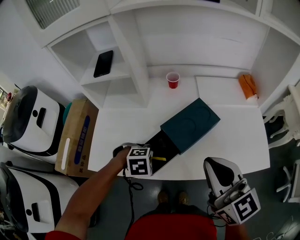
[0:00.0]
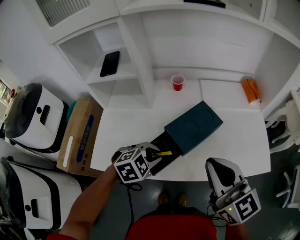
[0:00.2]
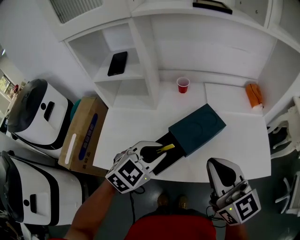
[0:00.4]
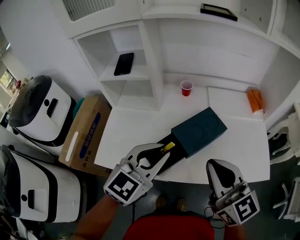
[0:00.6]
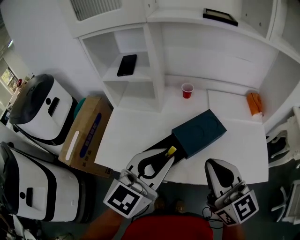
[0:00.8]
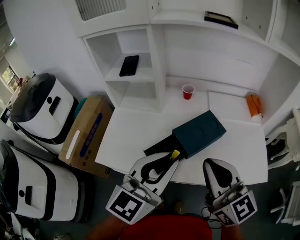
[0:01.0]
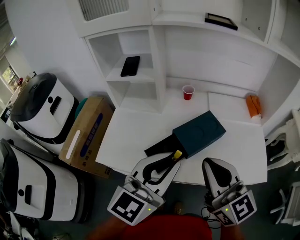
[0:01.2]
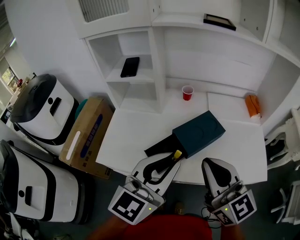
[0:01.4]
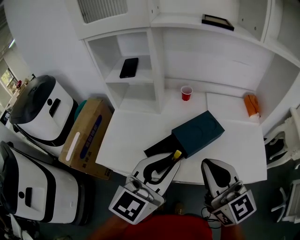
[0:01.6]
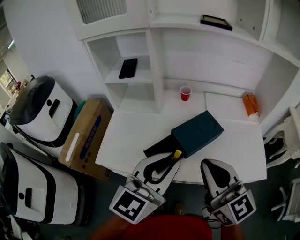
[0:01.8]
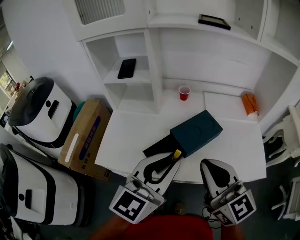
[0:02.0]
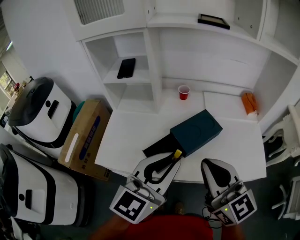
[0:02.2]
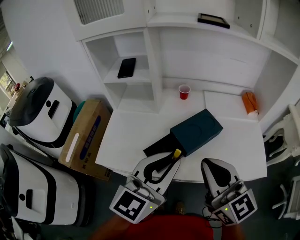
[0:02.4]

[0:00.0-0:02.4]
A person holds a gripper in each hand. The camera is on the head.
0:00.0 to 0:01.2: The left gripper travels upward by roughly 30 cm, and tips its fingers upward by some 70 degrees, while the right gripper changes place by some 5 cm.
0:01.2 to 0:02.4: Both grippers stay about where they are.

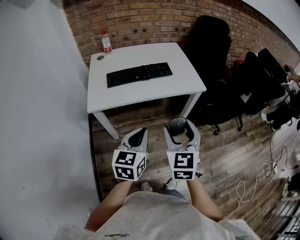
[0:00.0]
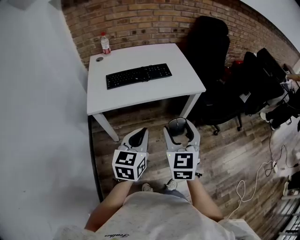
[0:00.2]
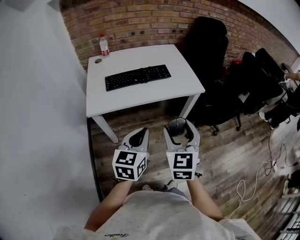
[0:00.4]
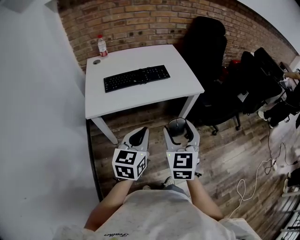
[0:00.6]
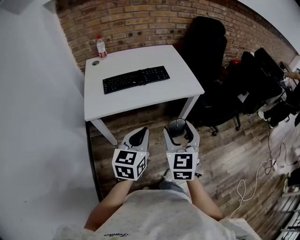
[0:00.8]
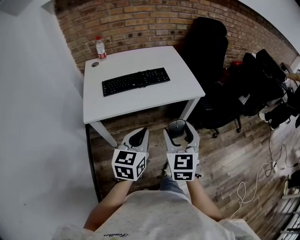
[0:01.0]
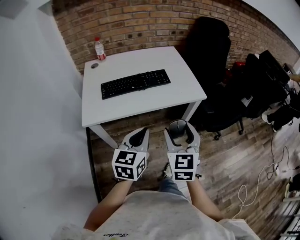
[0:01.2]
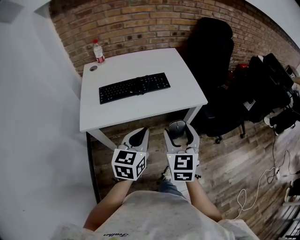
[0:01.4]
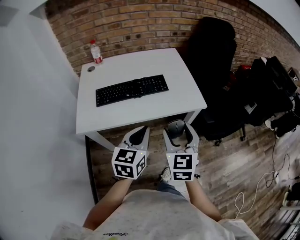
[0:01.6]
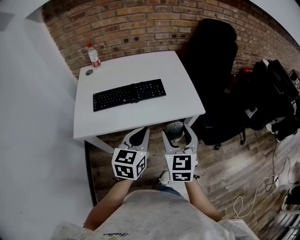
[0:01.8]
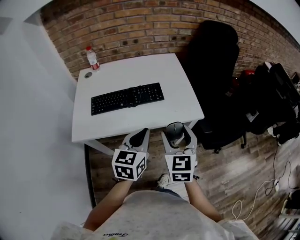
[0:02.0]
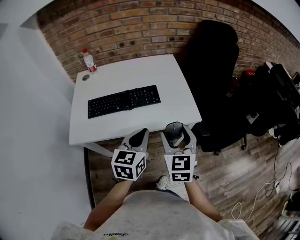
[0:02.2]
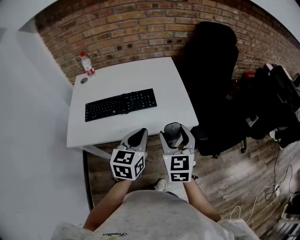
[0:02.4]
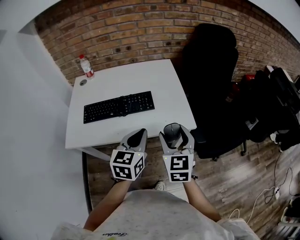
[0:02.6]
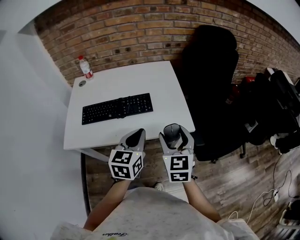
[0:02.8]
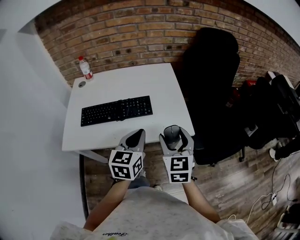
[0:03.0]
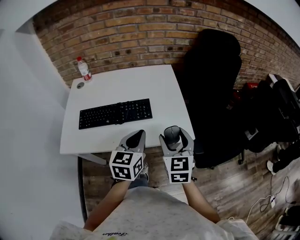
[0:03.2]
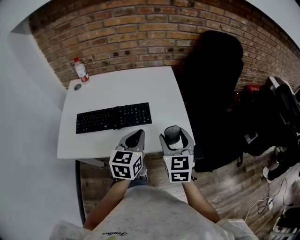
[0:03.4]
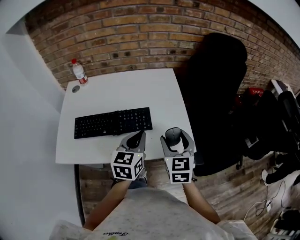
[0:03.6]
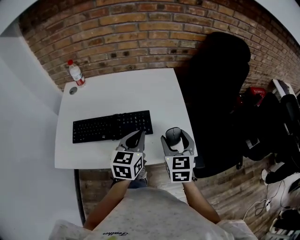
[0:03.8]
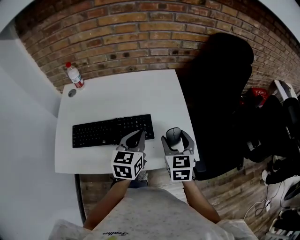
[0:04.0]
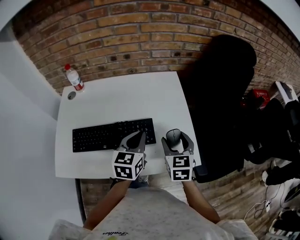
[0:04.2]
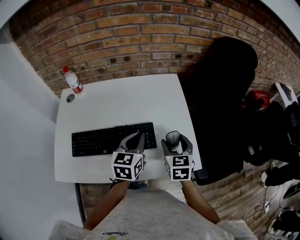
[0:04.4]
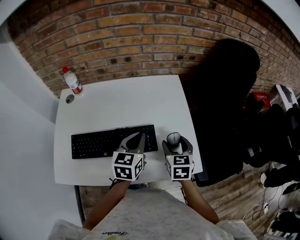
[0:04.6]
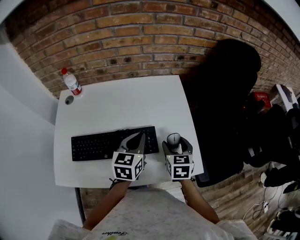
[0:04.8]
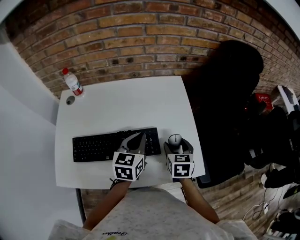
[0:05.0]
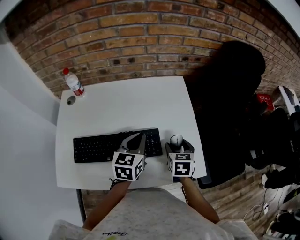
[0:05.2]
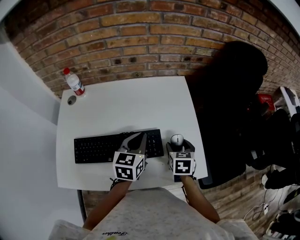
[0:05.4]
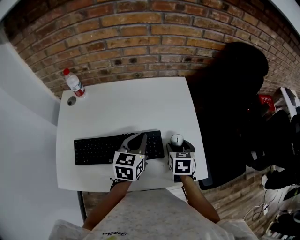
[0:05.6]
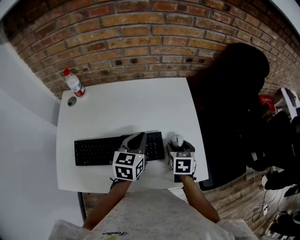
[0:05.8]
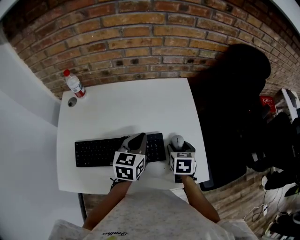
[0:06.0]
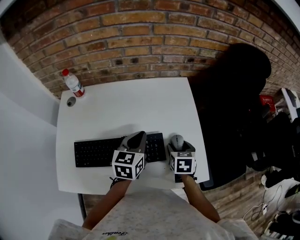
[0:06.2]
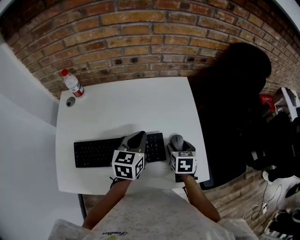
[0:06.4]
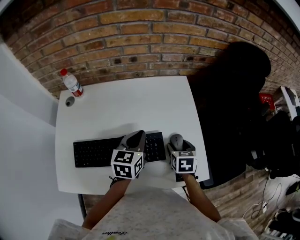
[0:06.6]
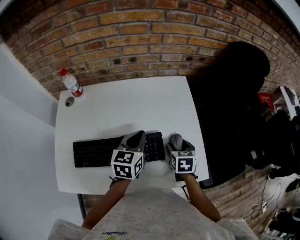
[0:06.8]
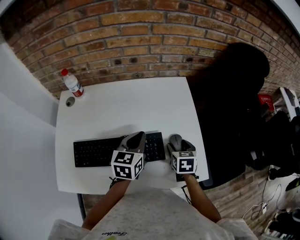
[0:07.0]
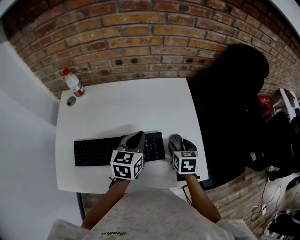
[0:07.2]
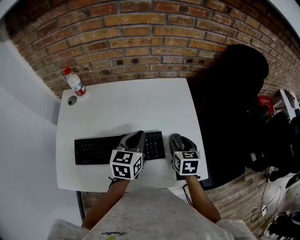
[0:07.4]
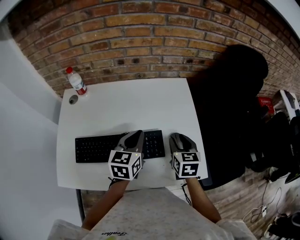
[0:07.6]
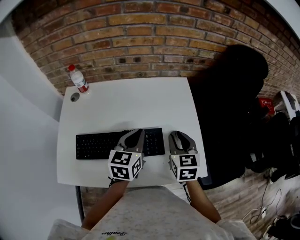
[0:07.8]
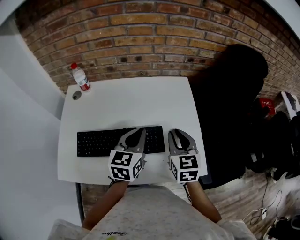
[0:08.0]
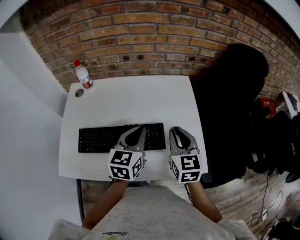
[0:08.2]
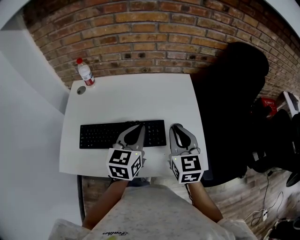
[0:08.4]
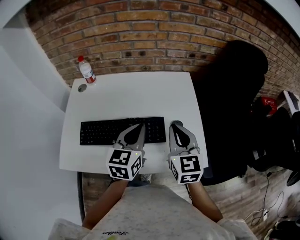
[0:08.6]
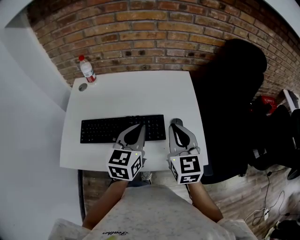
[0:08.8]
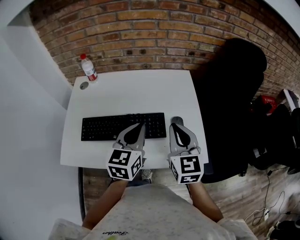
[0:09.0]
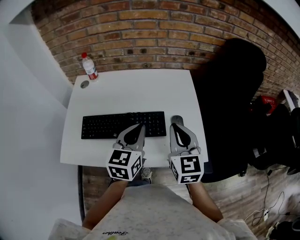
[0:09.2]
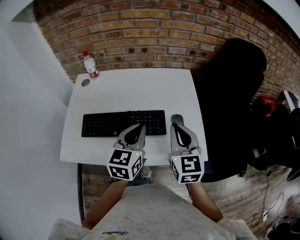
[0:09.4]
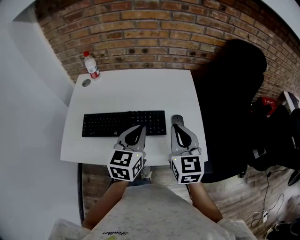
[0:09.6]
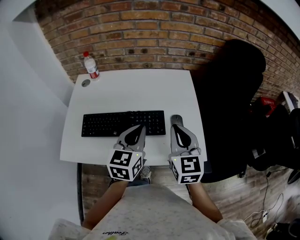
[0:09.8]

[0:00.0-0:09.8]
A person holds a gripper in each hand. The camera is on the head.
0:00.0 to 0:01.4: Both grippers travel together forward, approximately 15 cm.
0:01.4 to 0:02.8: The two grippers go approximately 20 cm forward and to the right.
0:02.8 to 0:04.2: The two grippers go roughly 20 cm forward.
0:04.2 to 0:05.6: The left gripper heads forward, covering roughly 5 cm; the right gripper shifts approximately 10 cm downward and forward, and rotates about 20 degrees.
0:05.6 to 0:07.0: The grippers make only small movements.
0:07.0 to 0:08.4: The left gripper goes some 10 cm backward and upward; the right gripper is displaced upward by roughly 20 cm, tips its fingers upward by roughly 30 degrees, and closes.
0:08.4 to 0:09.8: The two grippers go about 5 cm backward.

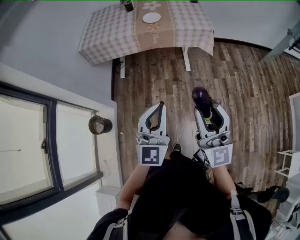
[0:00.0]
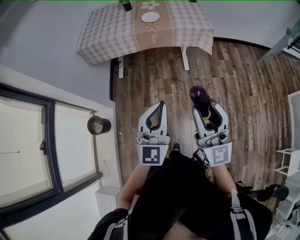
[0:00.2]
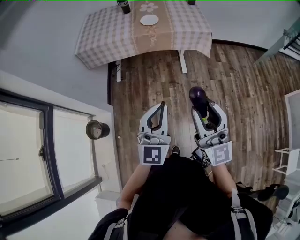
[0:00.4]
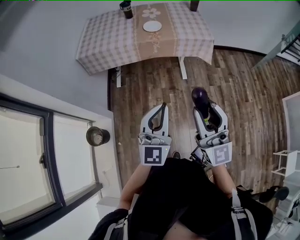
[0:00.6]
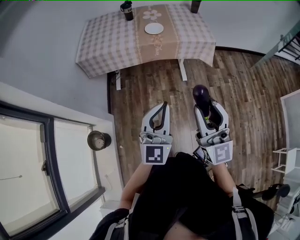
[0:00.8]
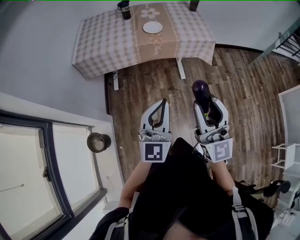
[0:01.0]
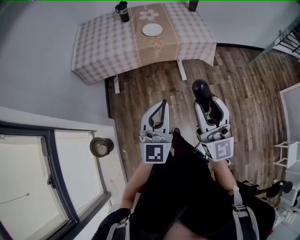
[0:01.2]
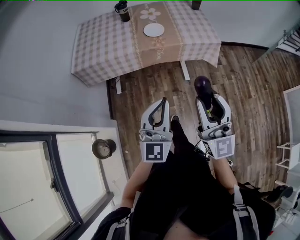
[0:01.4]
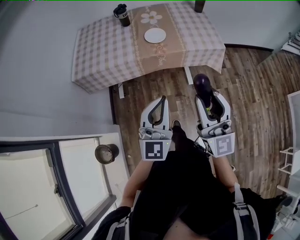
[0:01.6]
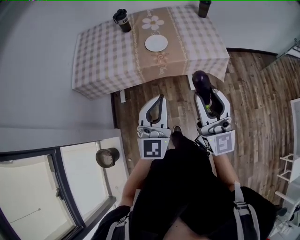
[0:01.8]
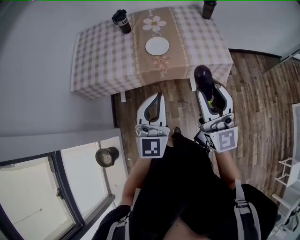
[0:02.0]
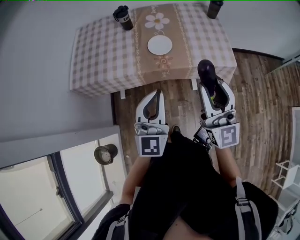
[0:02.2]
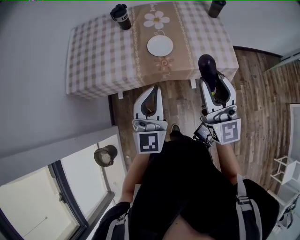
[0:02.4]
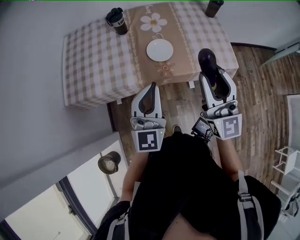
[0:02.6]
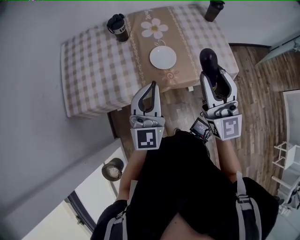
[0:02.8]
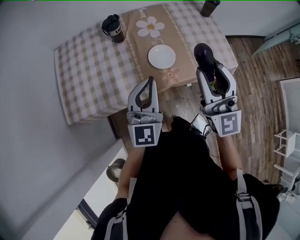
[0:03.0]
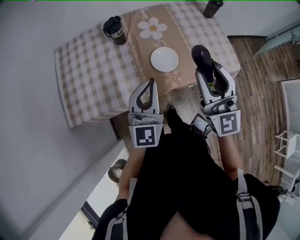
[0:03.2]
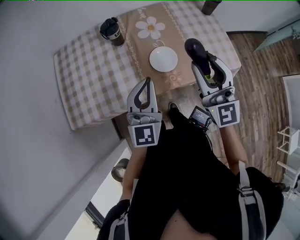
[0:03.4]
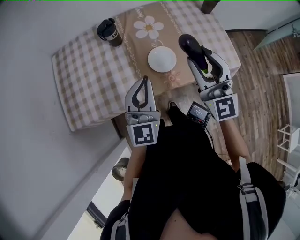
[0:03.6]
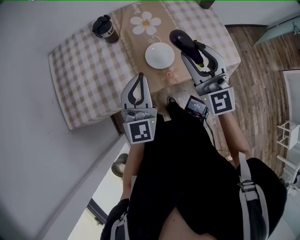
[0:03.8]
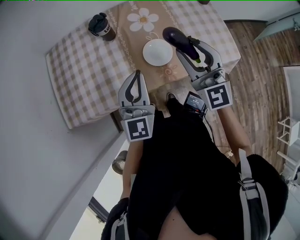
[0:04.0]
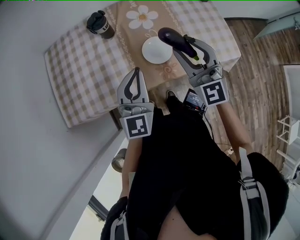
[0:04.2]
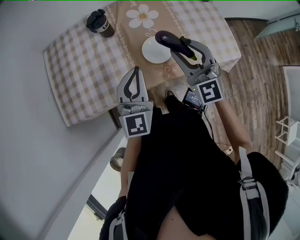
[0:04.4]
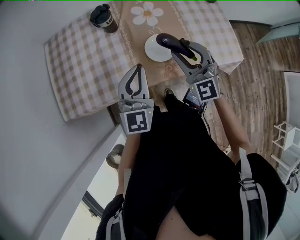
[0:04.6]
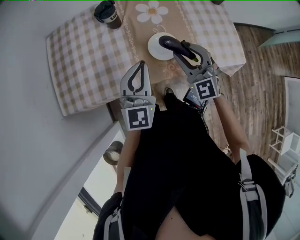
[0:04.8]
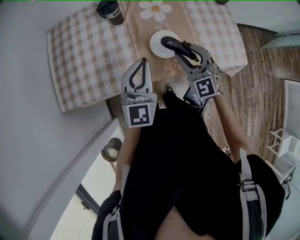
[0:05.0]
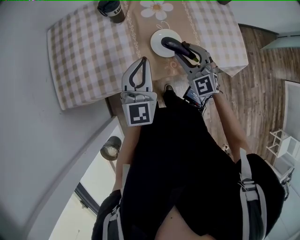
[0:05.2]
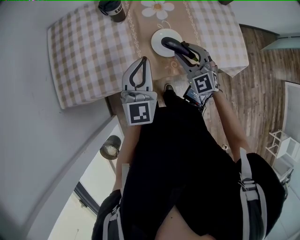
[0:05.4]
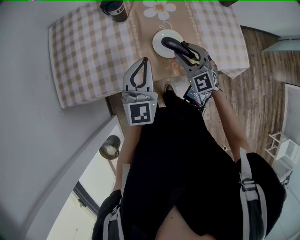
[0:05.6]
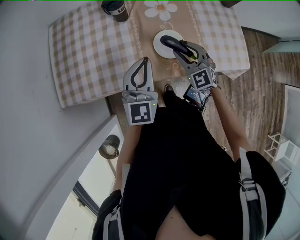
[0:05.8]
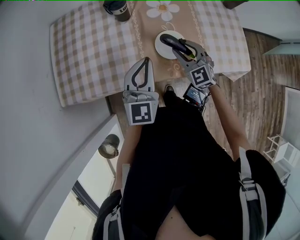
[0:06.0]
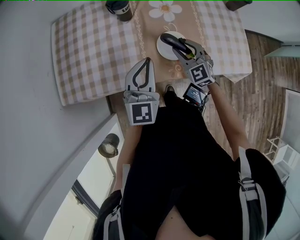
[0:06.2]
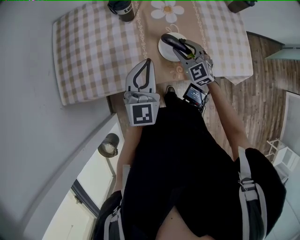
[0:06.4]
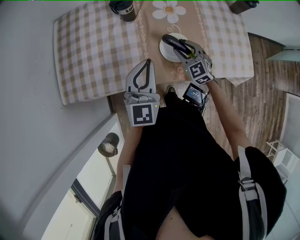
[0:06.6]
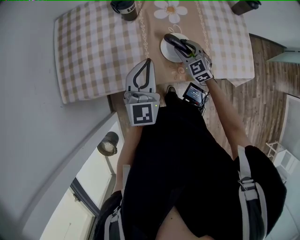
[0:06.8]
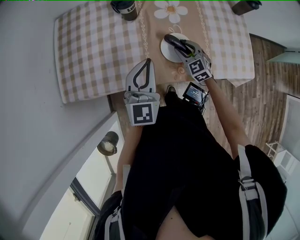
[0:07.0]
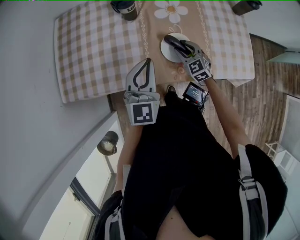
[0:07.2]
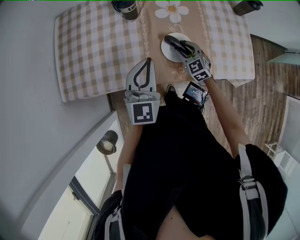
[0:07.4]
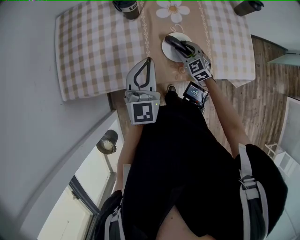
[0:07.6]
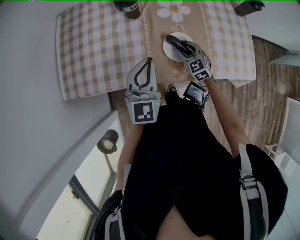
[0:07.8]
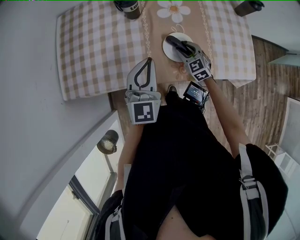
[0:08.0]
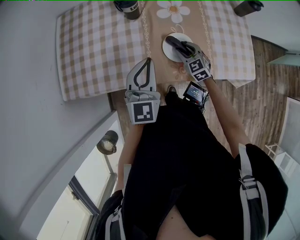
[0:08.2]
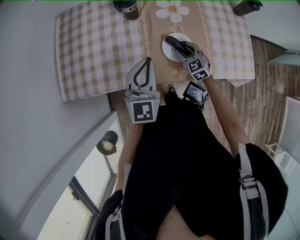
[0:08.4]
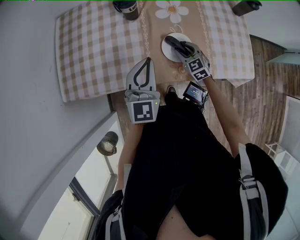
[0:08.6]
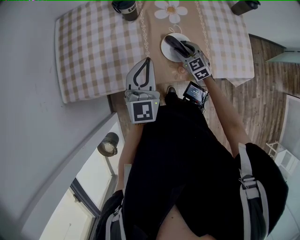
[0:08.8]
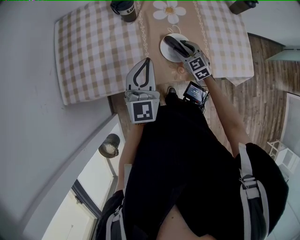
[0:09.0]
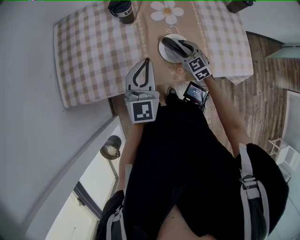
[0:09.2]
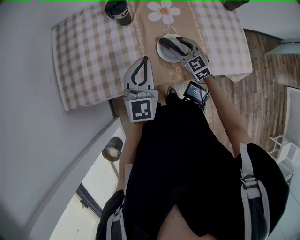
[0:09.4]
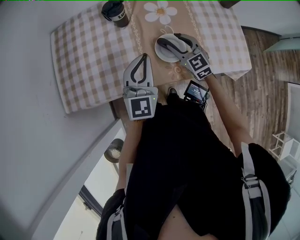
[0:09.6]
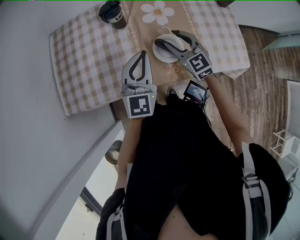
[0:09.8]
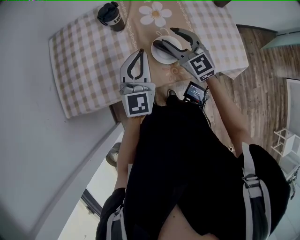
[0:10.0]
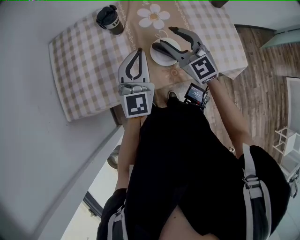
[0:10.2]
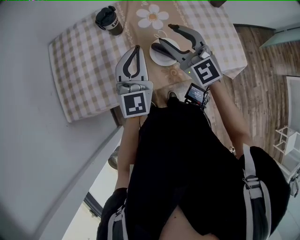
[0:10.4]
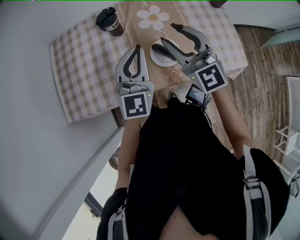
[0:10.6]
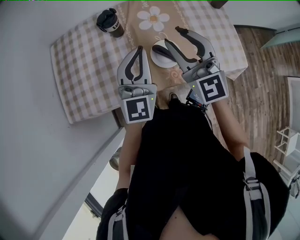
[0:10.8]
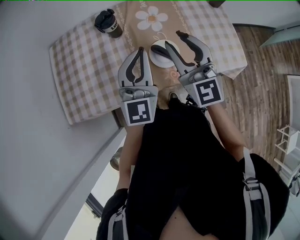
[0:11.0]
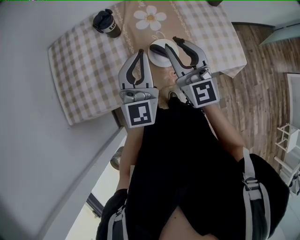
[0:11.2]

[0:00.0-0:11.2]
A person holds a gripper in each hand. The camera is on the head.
0:00.0 to 0:01.6: The grippers both shift forward by approximately 30 cm.
0:01.6 to 0:03.2: The pair of grippers is taken forward, approximately 40 cm.
0:03.2 to 0:04.8: The right gripper is displaced downward and forward by some 20 cm, and changes its angle by some 30 degrees; the left gripper goes approximately 10 cm forward and downward.
0:04.8 to 0:06.4: The right gripper goes roughly 15 cm downward and forward.
0:06.4 to 0:08.0: The right gripper shifts approximately 10 cm downward.
0:08.0 to 0:09.6: The right gripper is displaced upward by roughly 10 cm.
0:09.6 to 0:11.2: The right gripper goes approximately 20 cm upward, rotates approximately 30 degrees, and closes its fingers, while the left gripper moves upward, roughly 10 cm.
